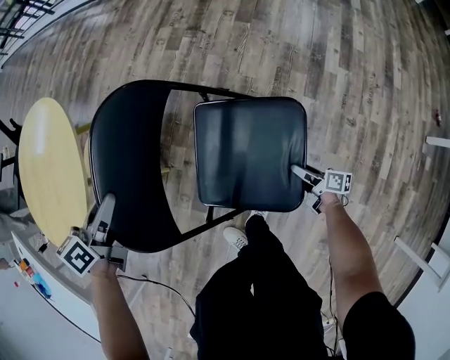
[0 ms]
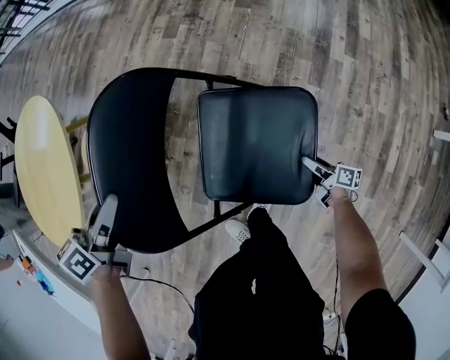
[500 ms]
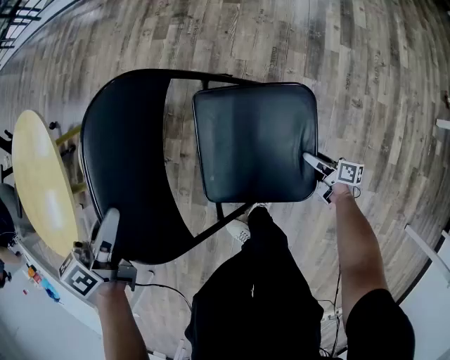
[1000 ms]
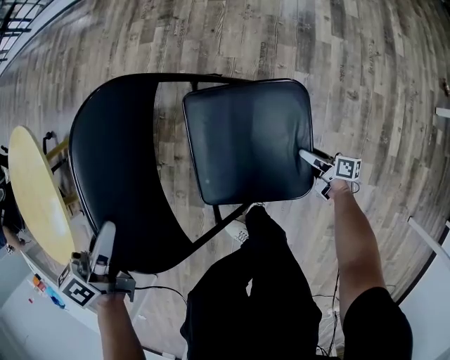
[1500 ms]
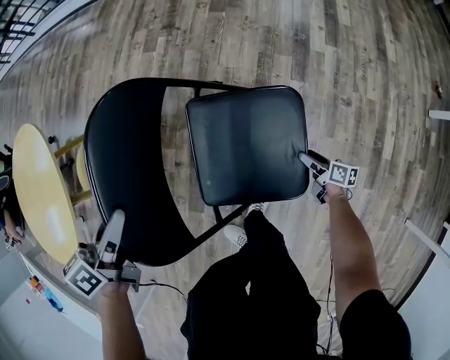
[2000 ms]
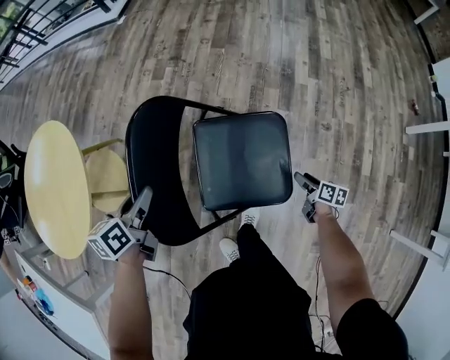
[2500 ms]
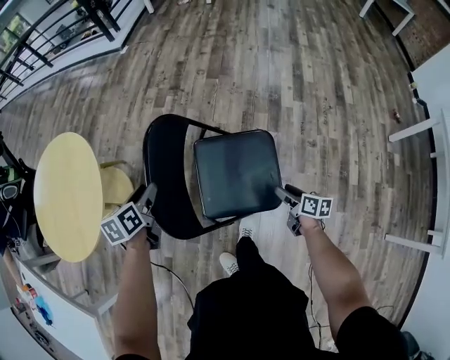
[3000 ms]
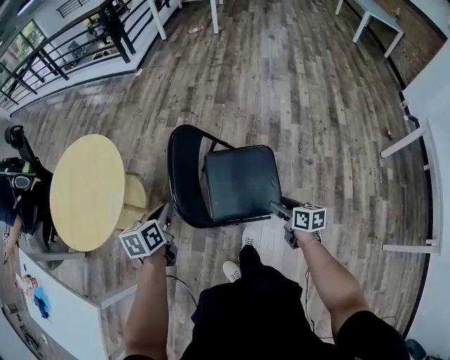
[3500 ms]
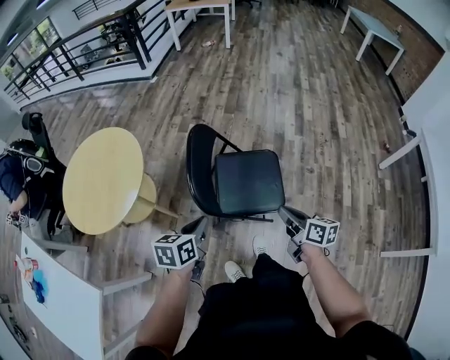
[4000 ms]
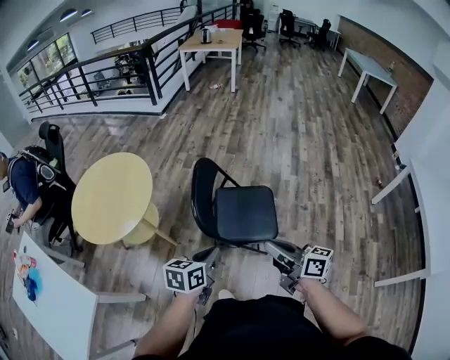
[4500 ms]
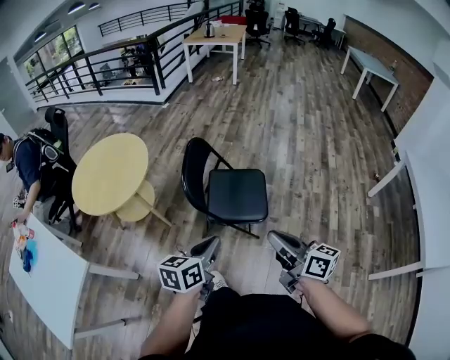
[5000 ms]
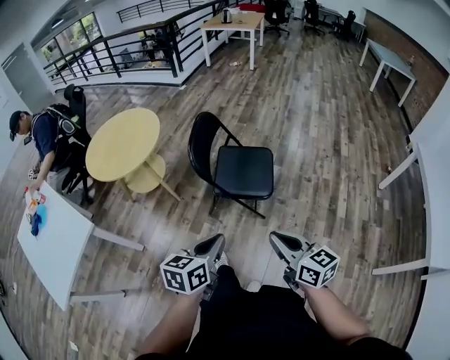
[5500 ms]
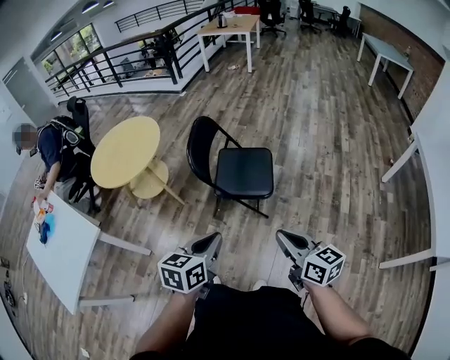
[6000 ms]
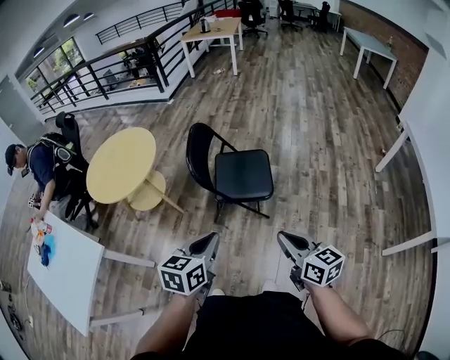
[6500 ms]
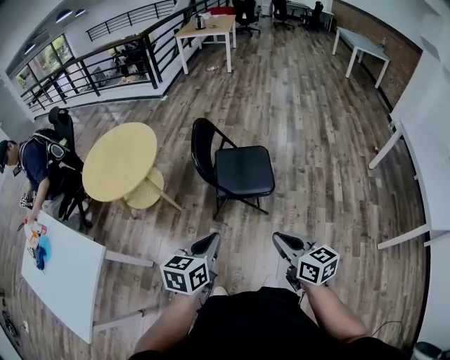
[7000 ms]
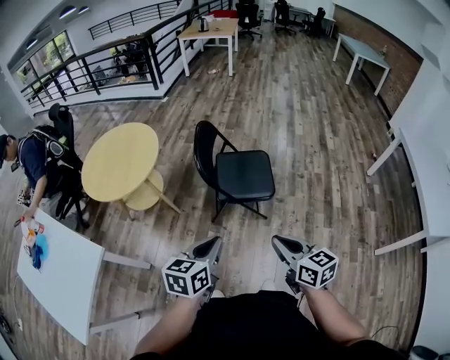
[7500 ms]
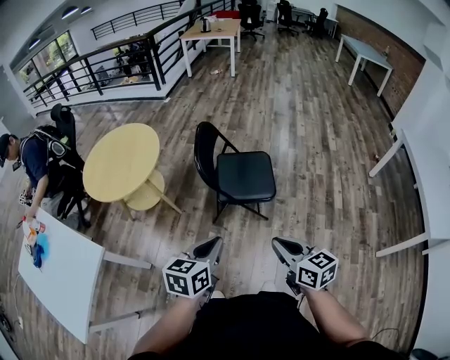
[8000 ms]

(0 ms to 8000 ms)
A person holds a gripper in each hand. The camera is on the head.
0 ms - 2000 ms: The right gripper shifts some 10 cm to the right and downward. The left gripper travels to the right by roughly 10 cm.
2000 ms - 4000 ms: The right gripper moves upward, roughly 50 cm, turns by approximately 30 degrees, and closes, while the left gripper travels backward and upward by approximately 25 cm, and closes.
4000 ms - 6000 ms: The left gripper shifts about 40 cm backward, upward and to the right; the right gripper goes roughly 35 cm backward and upward, and rotates roughly 20 degrees.
6000 ms - 8000 ms: The grippers both shift to the left by about 10 cm.

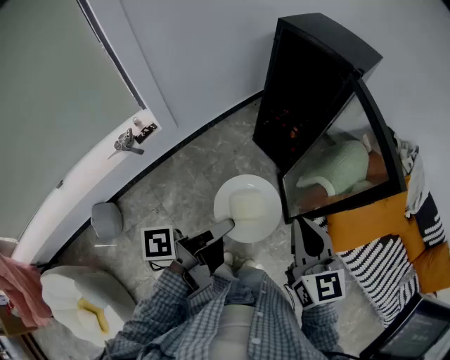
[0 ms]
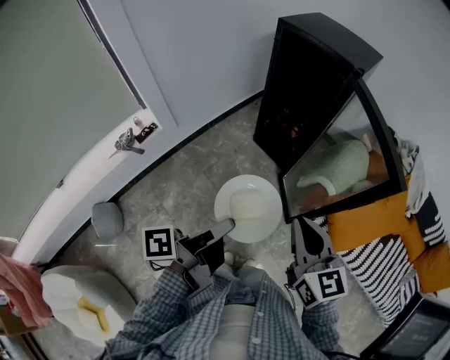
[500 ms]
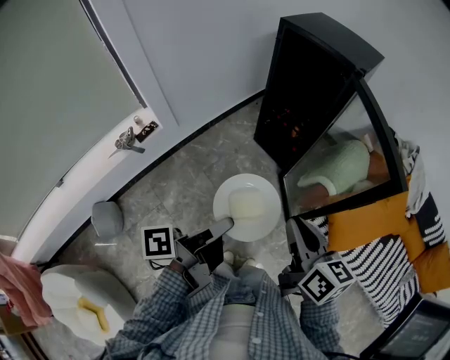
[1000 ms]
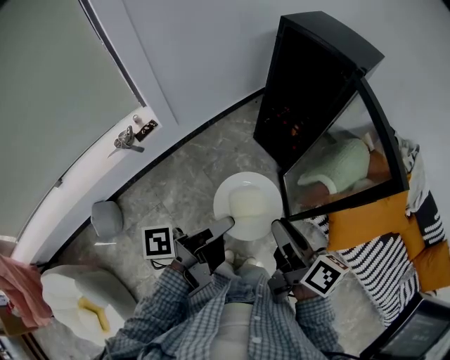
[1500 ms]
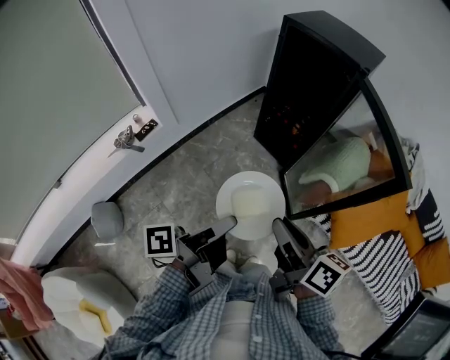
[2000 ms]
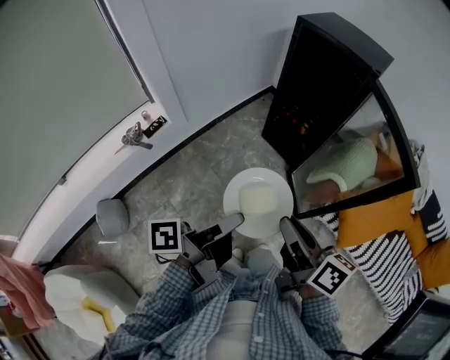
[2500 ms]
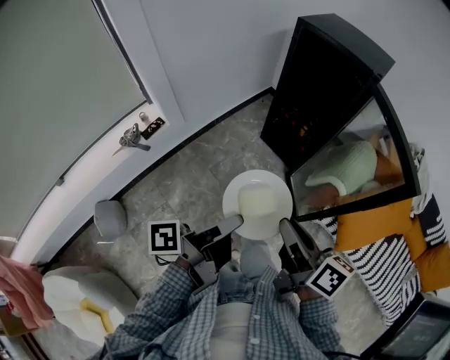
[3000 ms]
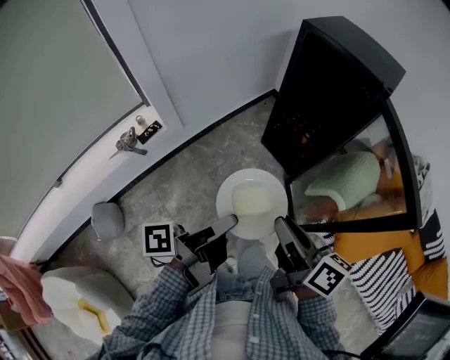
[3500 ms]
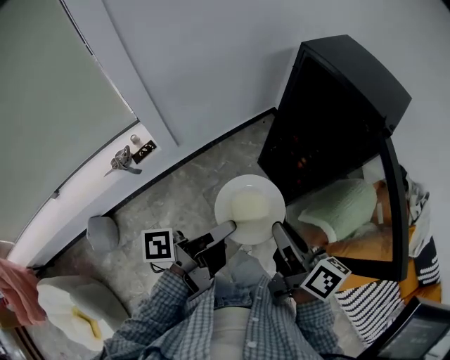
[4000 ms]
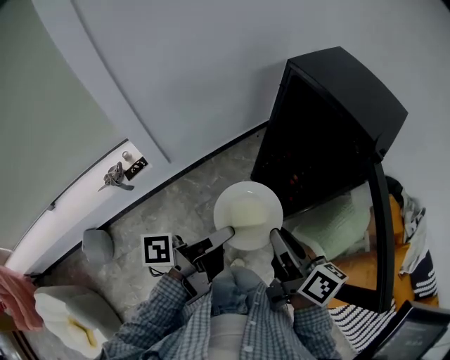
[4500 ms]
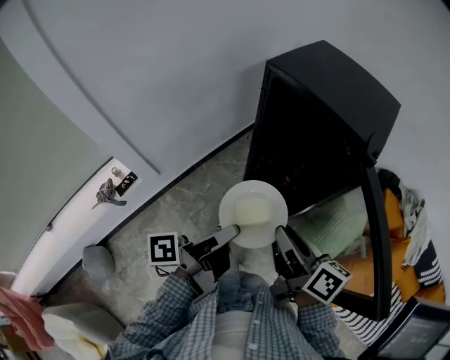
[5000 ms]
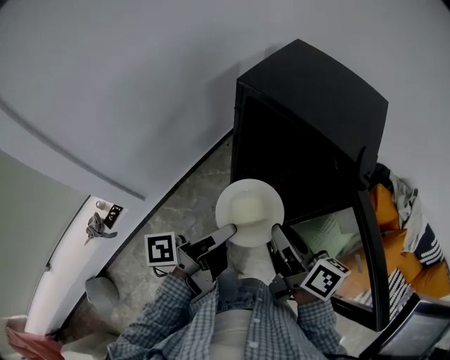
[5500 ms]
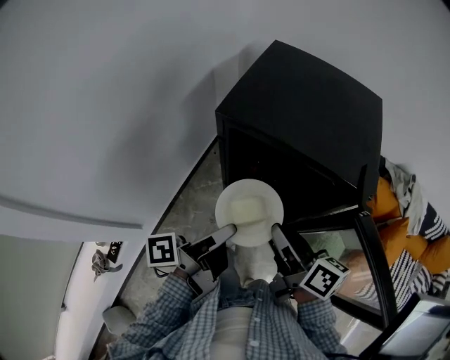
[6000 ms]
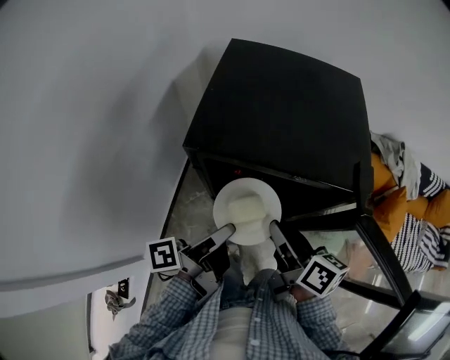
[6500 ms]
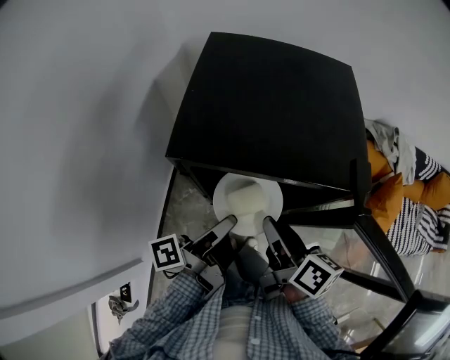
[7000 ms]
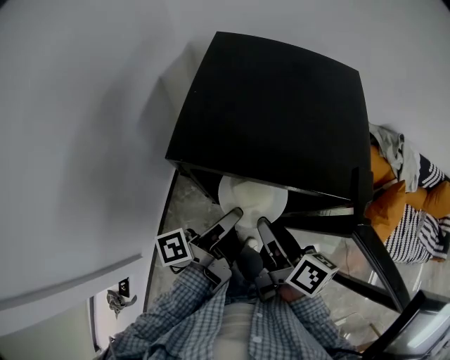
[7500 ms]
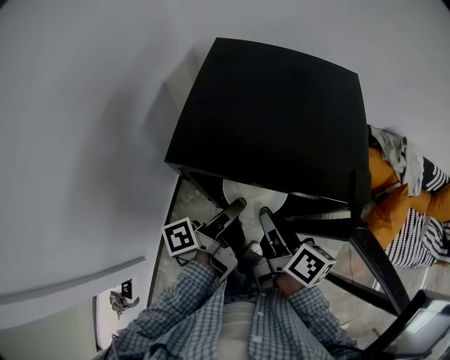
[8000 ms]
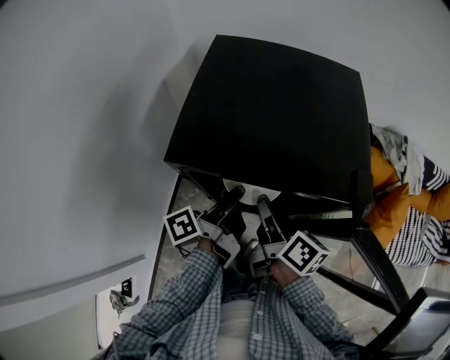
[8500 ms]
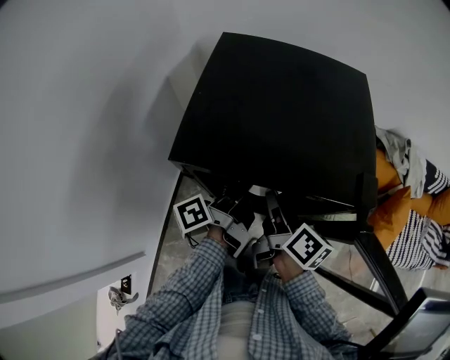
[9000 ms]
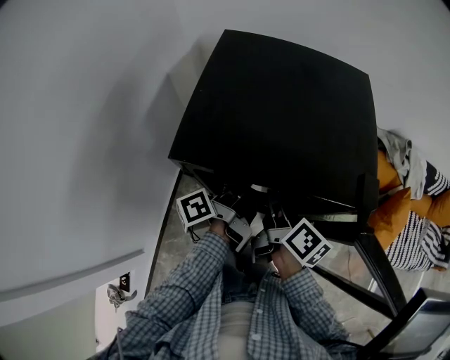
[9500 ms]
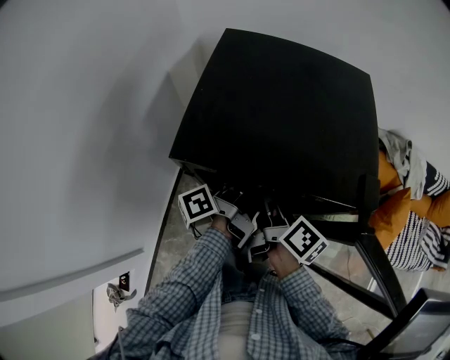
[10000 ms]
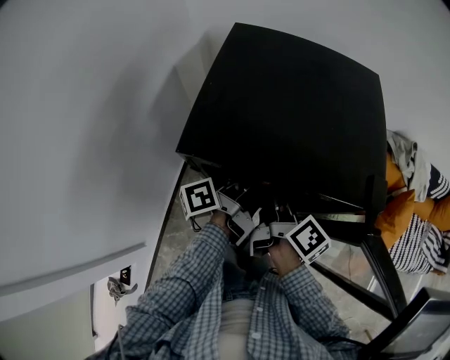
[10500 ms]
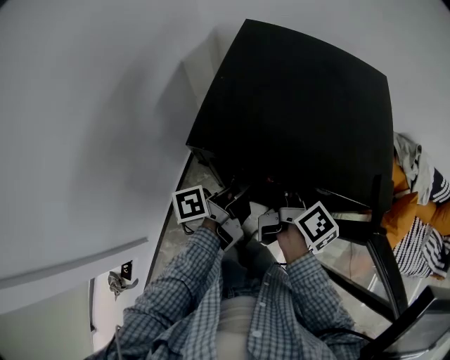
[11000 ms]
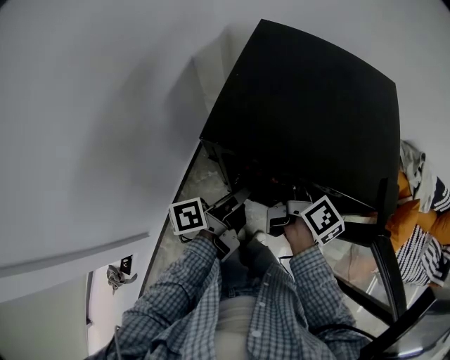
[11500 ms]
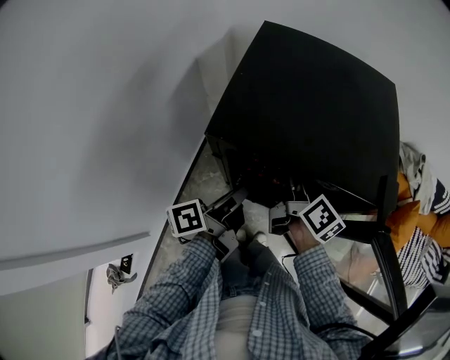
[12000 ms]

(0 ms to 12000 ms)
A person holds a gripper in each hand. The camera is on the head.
0 ms - 2000 ms: The right gripper changes place by about 5 cm, and rotates around the line of its fingers by approximately 50 degrees, clockwise from behind.
2000 ms - 4000 ms: The right gripper shifts by about 20 cm.
4000 ms - 6000 ms: The right gripper changes place by roughly 30 cm, and changes its angle by roughly 20 degrees.
6000 ms - 8000 ms: The right gripper ends up roughly 10 cm from where it was, and changes its angle by approximately 20 degrees.
8000 ms - 10000 ms: The right gripper shifts by approximately 5 cm.

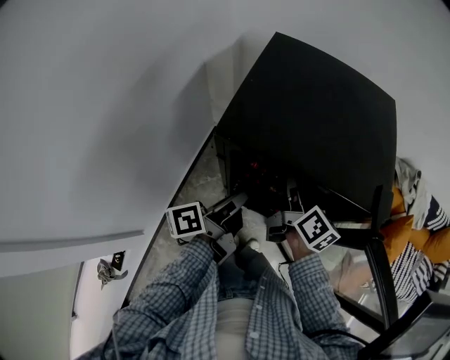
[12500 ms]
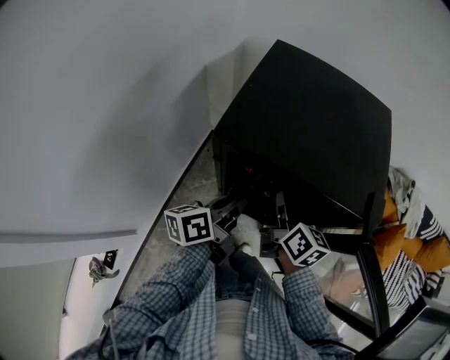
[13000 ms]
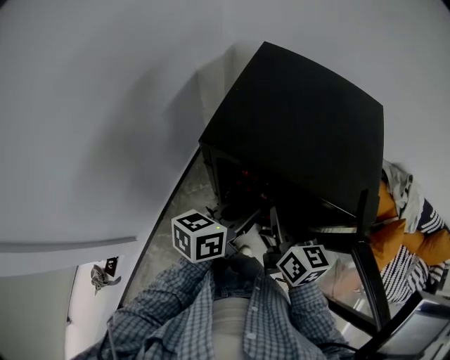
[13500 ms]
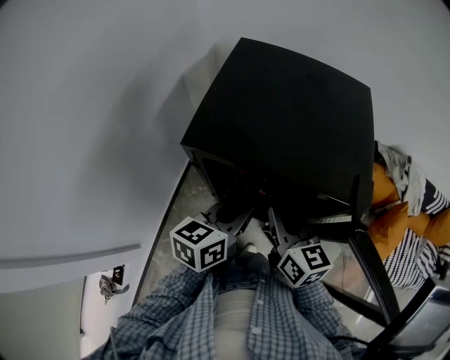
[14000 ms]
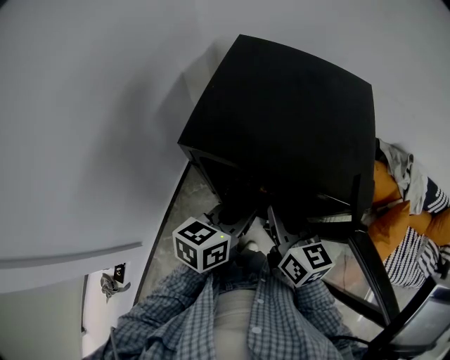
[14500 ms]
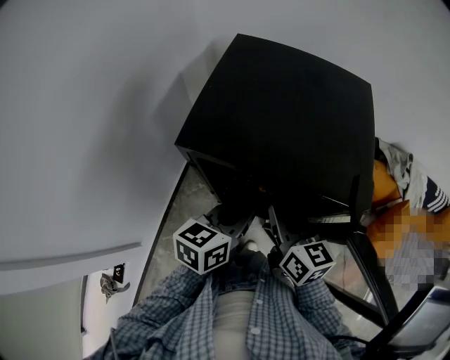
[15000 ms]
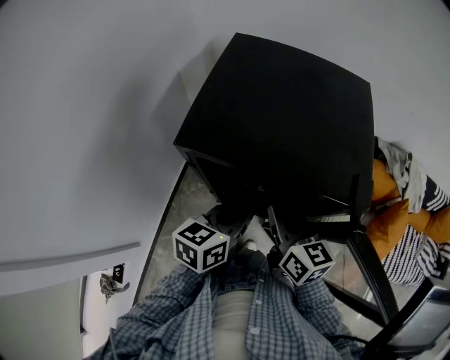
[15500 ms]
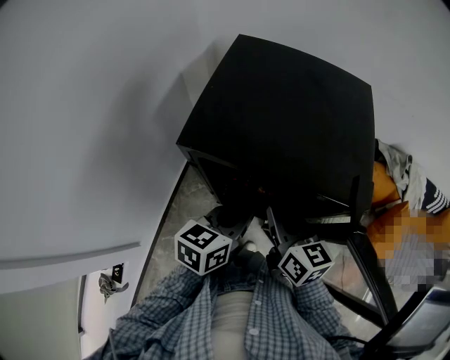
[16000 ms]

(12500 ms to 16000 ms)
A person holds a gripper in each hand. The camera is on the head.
12500 ms - 14500 ms: The right gripper shifts by some 10 cm, turns by about 30 degrees, and closes up.

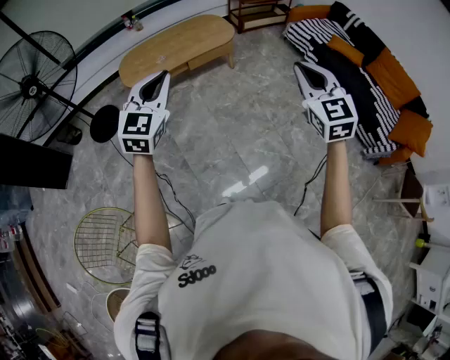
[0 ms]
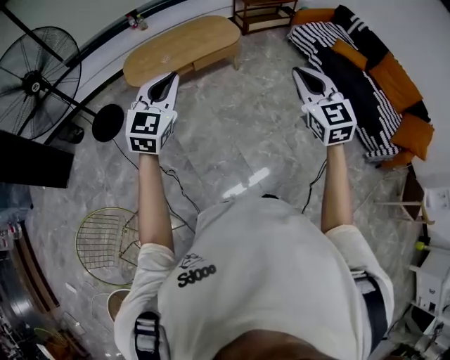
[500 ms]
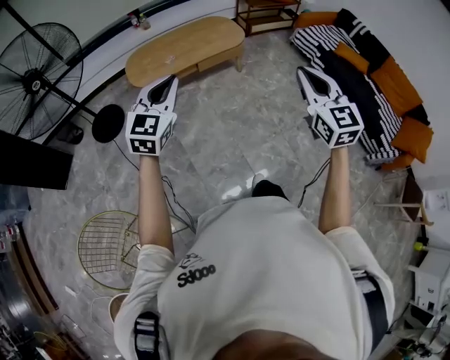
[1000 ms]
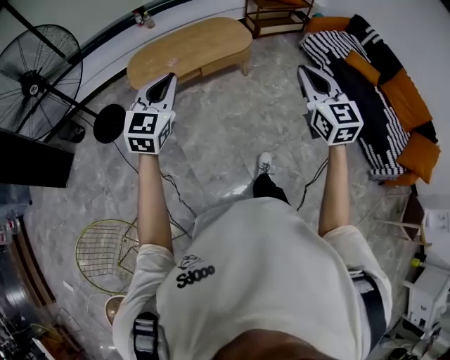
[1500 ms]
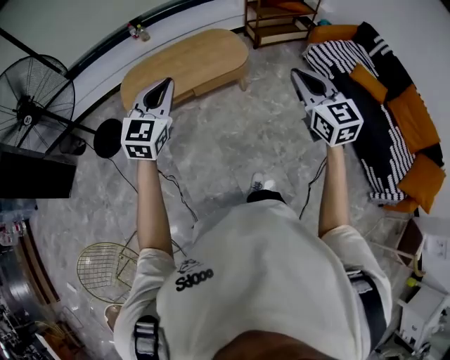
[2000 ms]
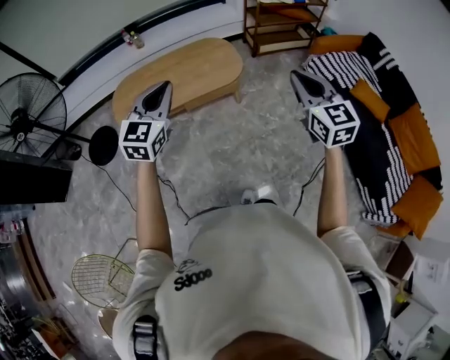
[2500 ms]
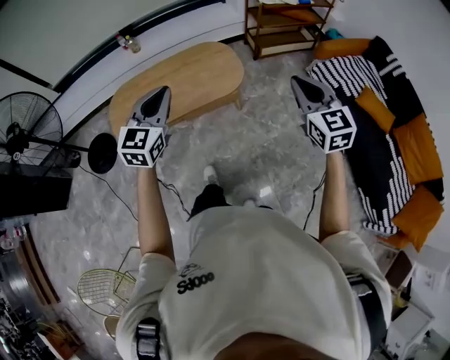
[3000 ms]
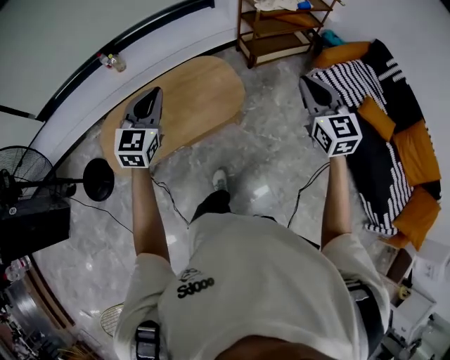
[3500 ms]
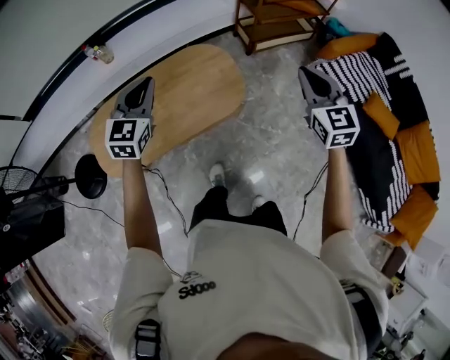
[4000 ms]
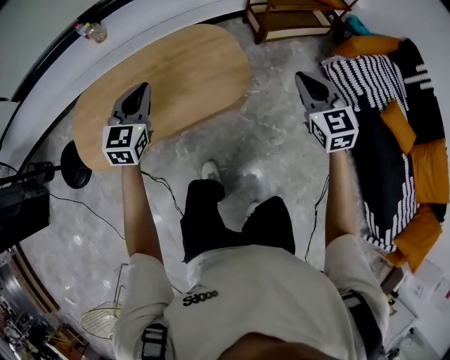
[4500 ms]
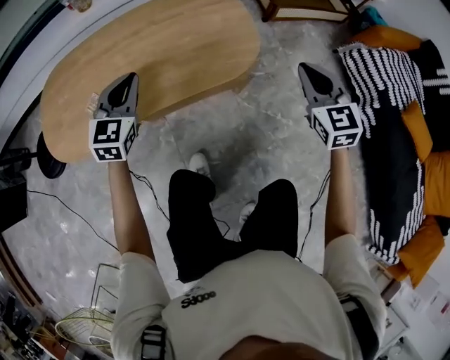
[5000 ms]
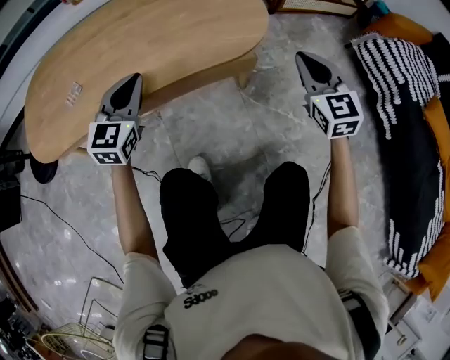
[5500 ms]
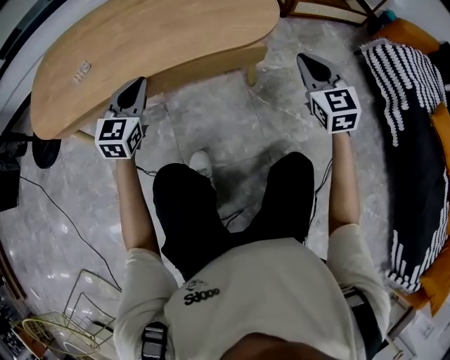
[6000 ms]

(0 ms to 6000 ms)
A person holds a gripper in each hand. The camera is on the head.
0 ms - 2000 ms: Both grippers move forward, about 30 cm.
2000 ms - 4000 ms: Both grippers are carried forward, about 50 cm.
4000 ms - 6000 ms: Both grippers travel together downward, approximately 60 cm.
